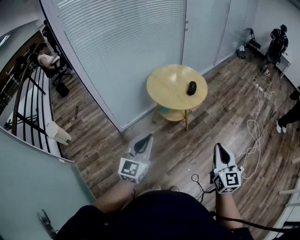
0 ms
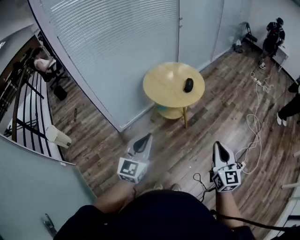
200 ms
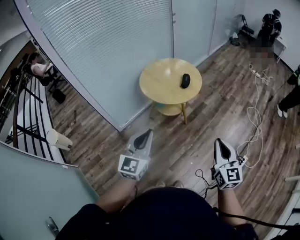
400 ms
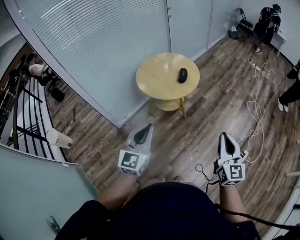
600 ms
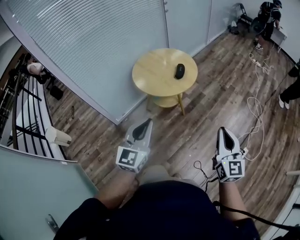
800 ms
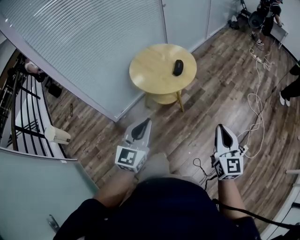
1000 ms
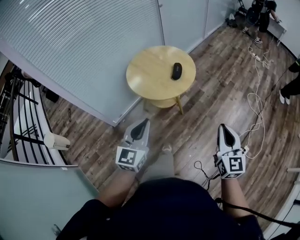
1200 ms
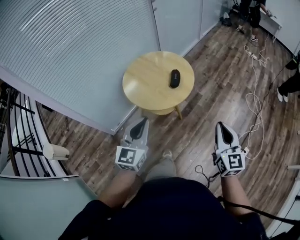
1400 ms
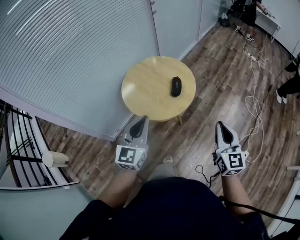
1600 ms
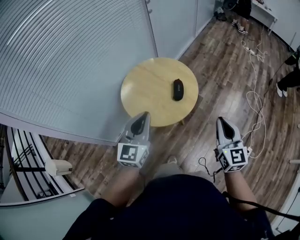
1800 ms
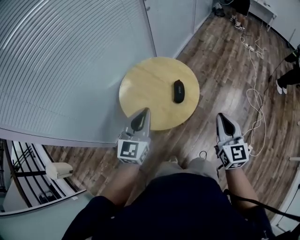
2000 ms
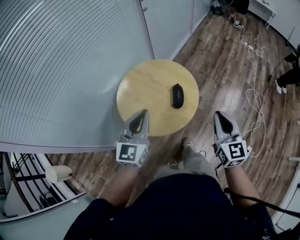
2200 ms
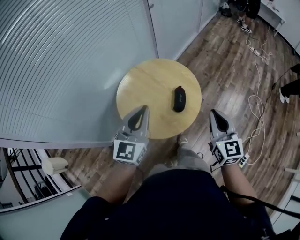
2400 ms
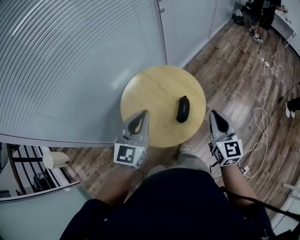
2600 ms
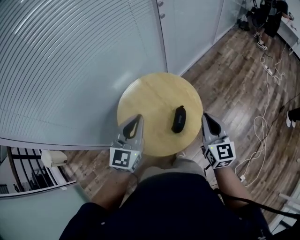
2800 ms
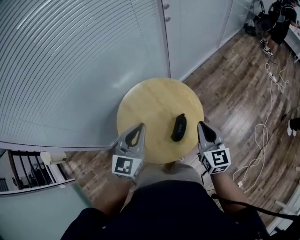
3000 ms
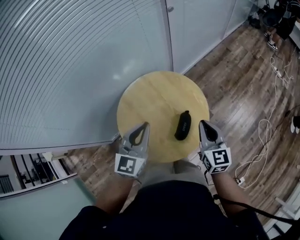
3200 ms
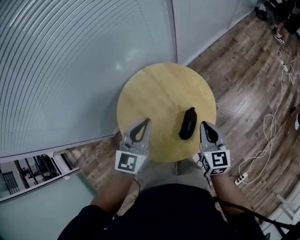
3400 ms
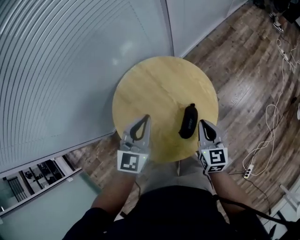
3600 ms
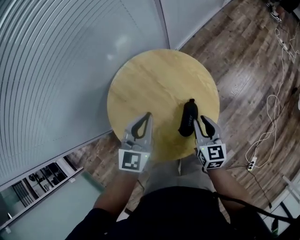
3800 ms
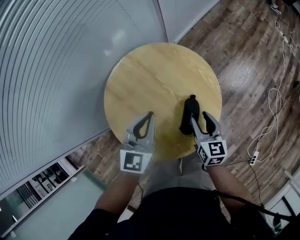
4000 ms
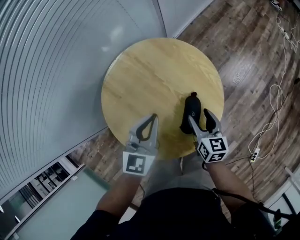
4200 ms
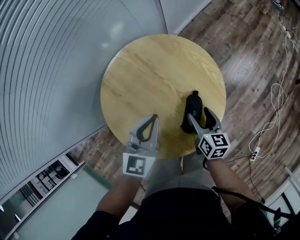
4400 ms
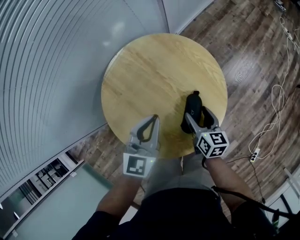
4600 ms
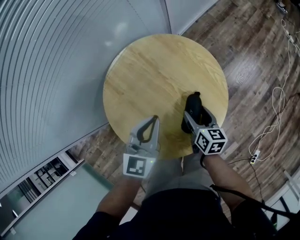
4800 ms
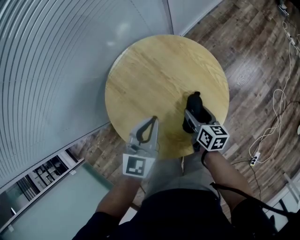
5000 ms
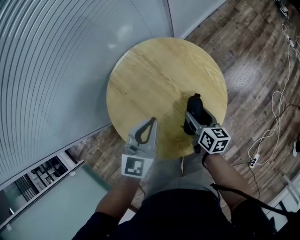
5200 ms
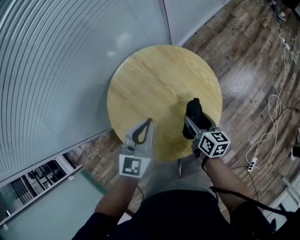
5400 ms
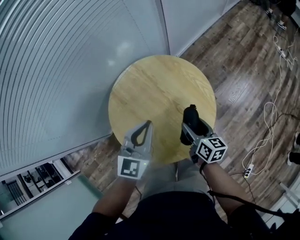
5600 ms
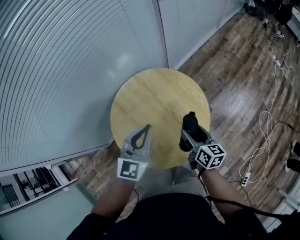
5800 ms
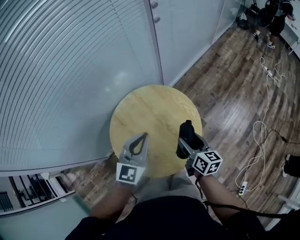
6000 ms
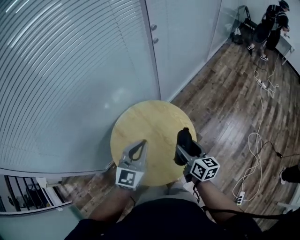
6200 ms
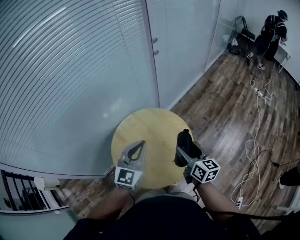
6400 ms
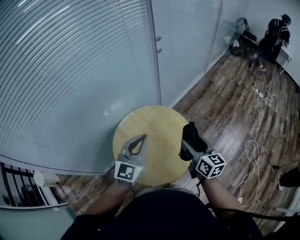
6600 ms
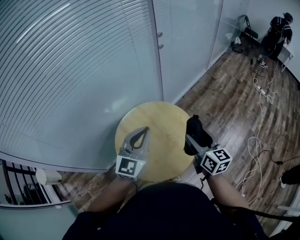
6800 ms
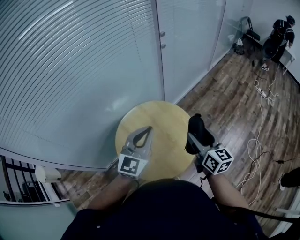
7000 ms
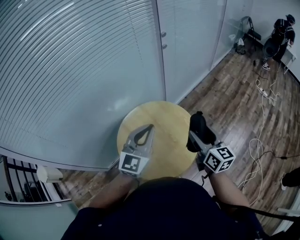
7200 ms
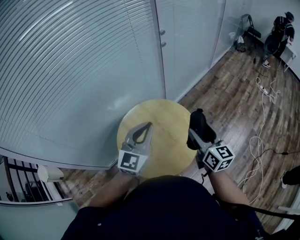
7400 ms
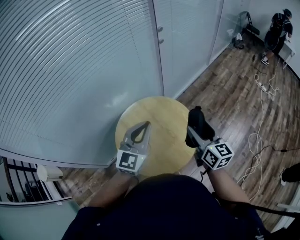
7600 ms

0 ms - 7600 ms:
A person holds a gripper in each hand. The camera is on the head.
0 ms - 1600 ms: The two grippers go about 30 cm forward.
1600 ms - 3000 ms: The two grippers go about 35 cm forward.
3000 ms - 4600 ms: Both grippers travel together downward, roughly 25 cm. The right gripper rotates about 40 degrees, and opens its fingers.
4600 ms - 6000 ms: Both grippers travel together upward, roughly 15 cm.
6000 ms - 7600 ms: The left gripper moves upward, about 10 cm, while the right gripper travels upward by approximately 20 cm, and changes its angle by some 20 degrees.

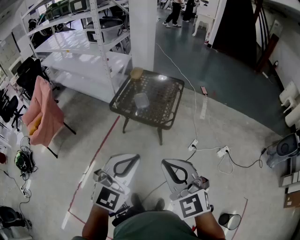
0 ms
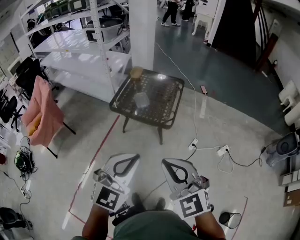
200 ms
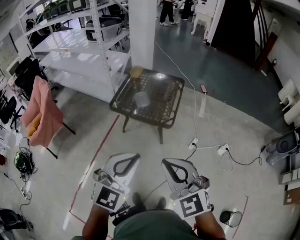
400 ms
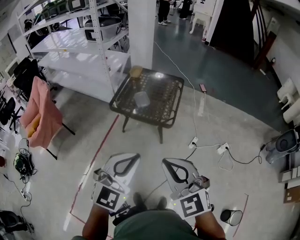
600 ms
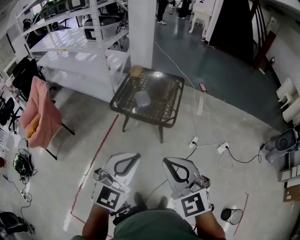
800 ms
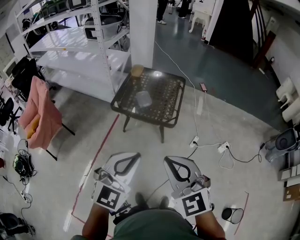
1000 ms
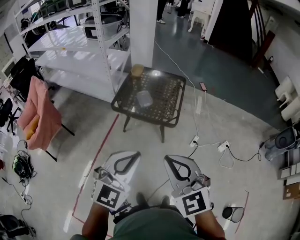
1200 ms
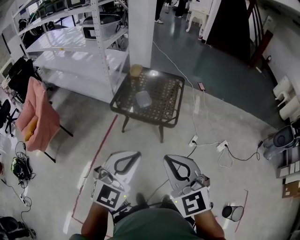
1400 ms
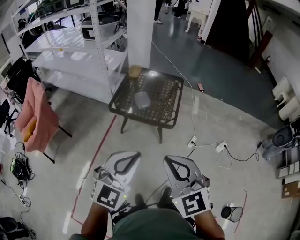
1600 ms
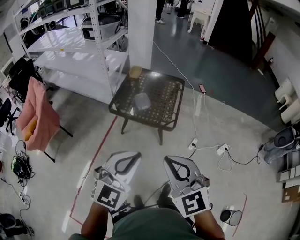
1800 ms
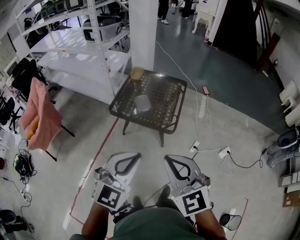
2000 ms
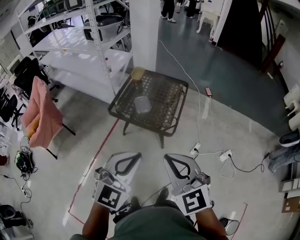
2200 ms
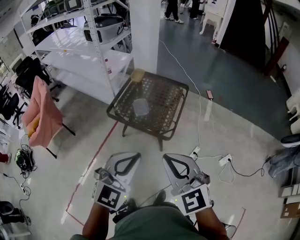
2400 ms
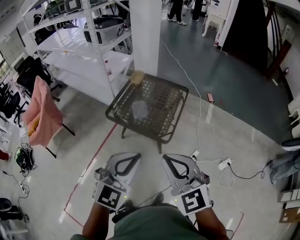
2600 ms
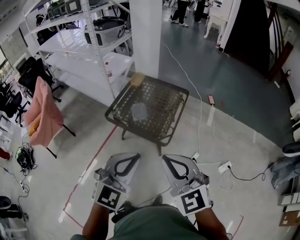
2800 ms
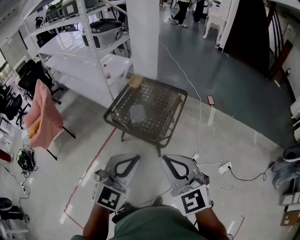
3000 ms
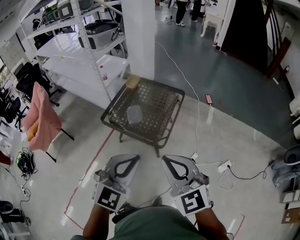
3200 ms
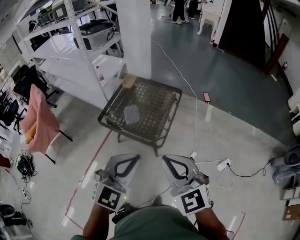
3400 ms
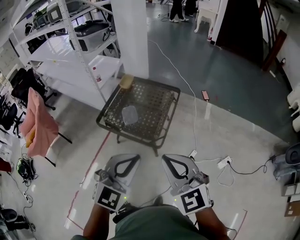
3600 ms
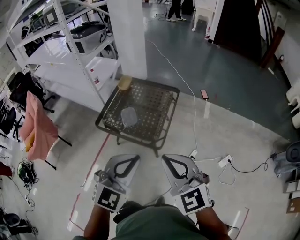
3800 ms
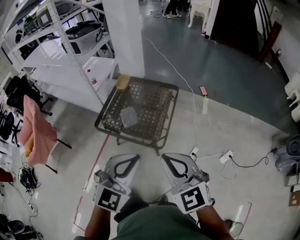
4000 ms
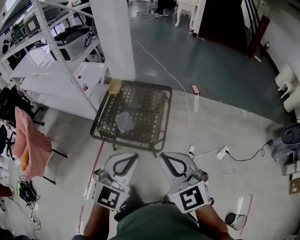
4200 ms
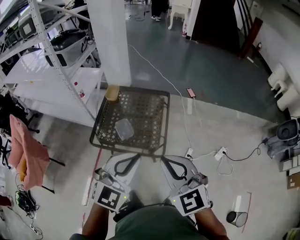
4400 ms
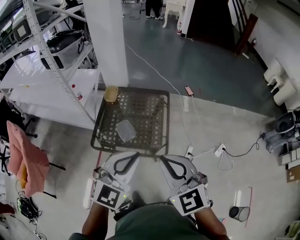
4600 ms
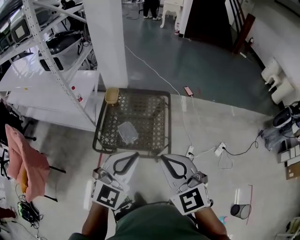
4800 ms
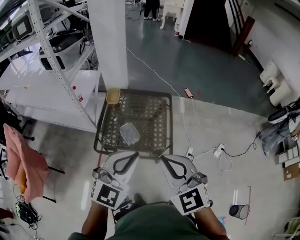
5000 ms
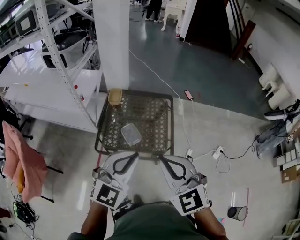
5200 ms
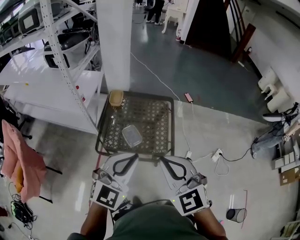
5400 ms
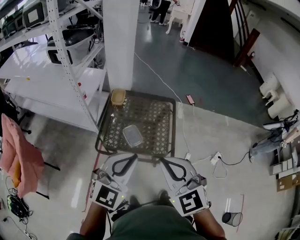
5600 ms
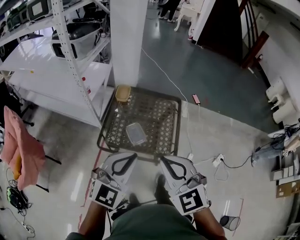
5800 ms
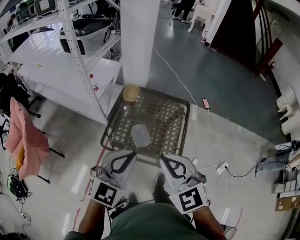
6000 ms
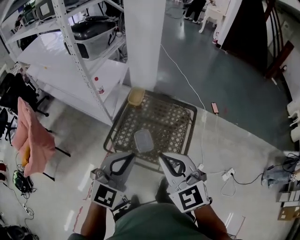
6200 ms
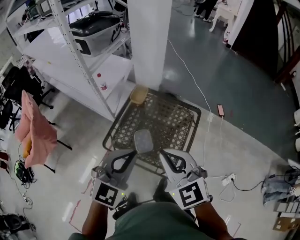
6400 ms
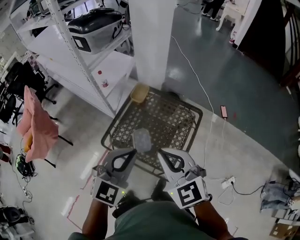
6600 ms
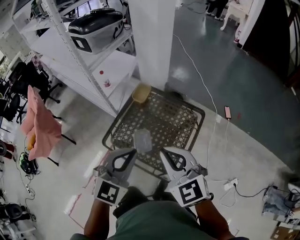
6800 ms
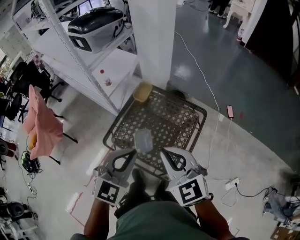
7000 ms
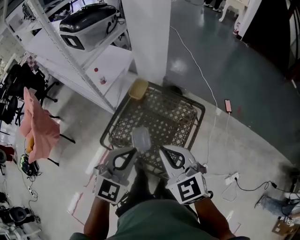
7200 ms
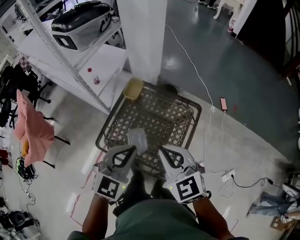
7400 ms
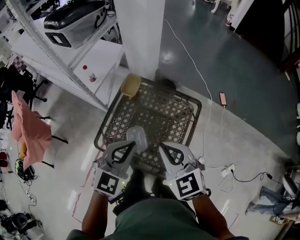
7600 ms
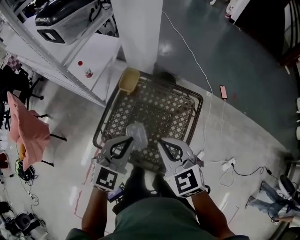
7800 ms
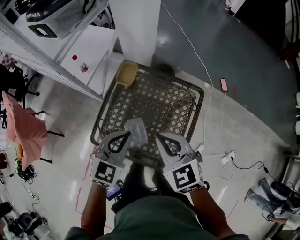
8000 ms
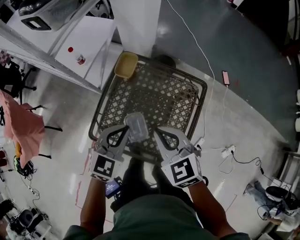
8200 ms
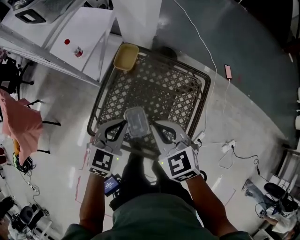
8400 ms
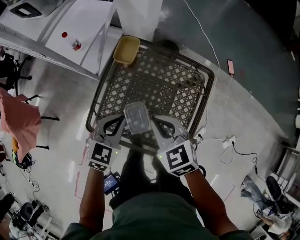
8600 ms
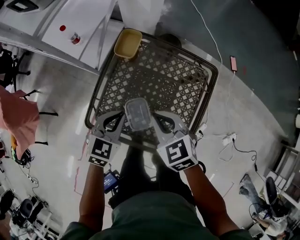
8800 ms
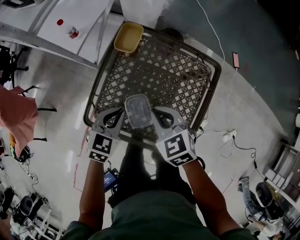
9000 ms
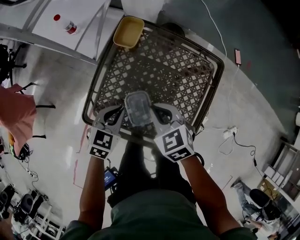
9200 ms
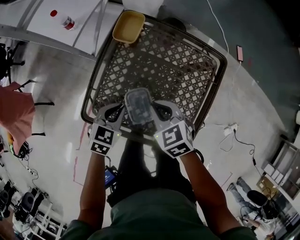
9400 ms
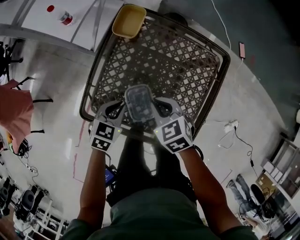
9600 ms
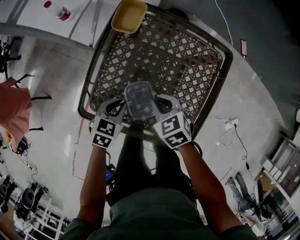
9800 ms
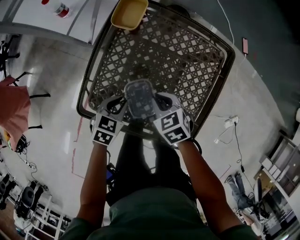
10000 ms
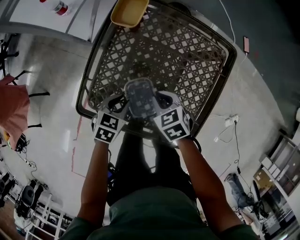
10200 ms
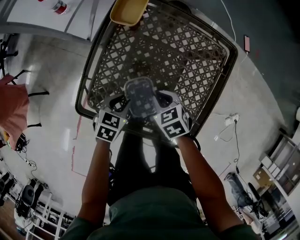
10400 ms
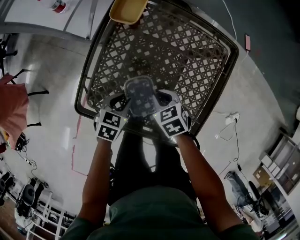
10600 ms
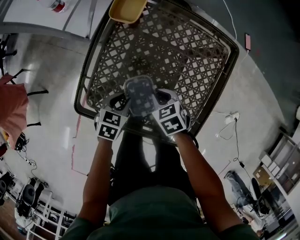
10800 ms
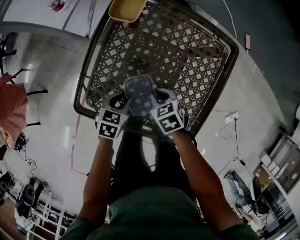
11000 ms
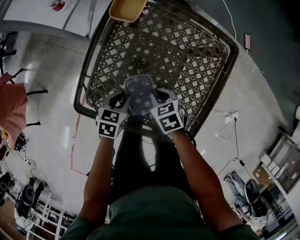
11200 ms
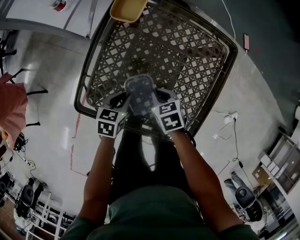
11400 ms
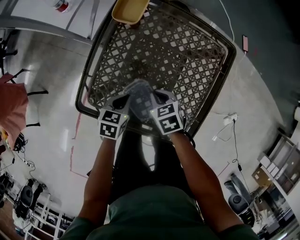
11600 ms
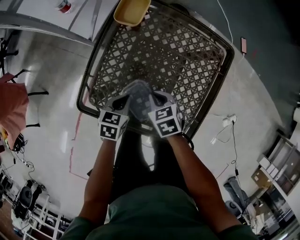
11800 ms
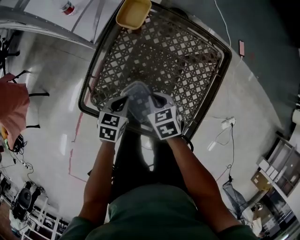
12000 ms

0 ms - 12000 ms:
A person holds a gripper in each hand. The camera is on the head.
0 ms - 1600 ms: Both grippers move to the left, about 10 cm.
1600 ms - 3000 ms: The grippers both shift to the right and forward by about 25 cm.
3000 ms - 4400 ms: The right gripper travels forward and to the left by about 15 cm. Meanwhile the left gripper is displaced forward by roughly 15 cm.
4400 ms - 6000 ms: The grippers both shift to the left and forward by about 20 cm.
6000 ms - 7600 ms: The two grippers go approximately 25 cm forward, to the right and downward.
7600 ms - 9000 ms: Both grippers travel together downward, approximately 25 cm. The left gripper turns by some 20 degrees.
9000 ms - 10400 ms: Both grippers move downward, approximately 20 cm. The right gripper swivels some 20 degrees; the left gripper opens up.
10400 ms - 12000 ms: The left gripper closes up.

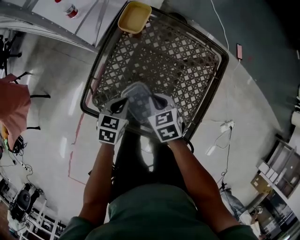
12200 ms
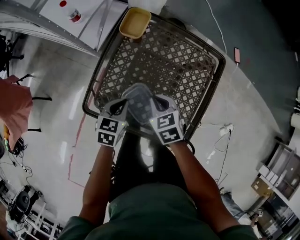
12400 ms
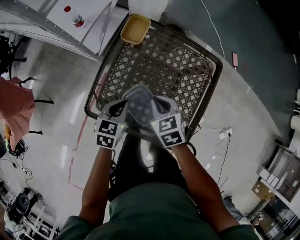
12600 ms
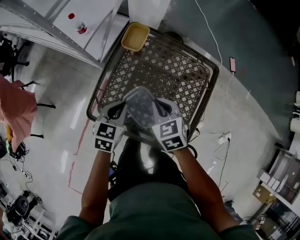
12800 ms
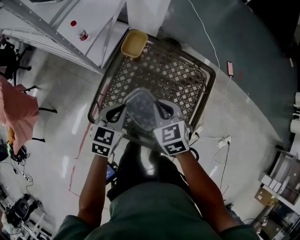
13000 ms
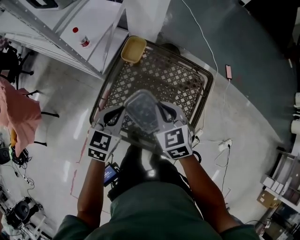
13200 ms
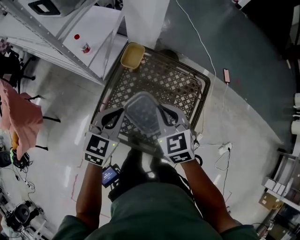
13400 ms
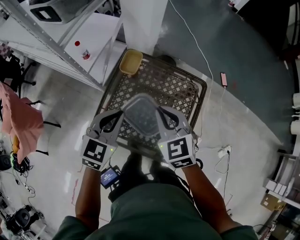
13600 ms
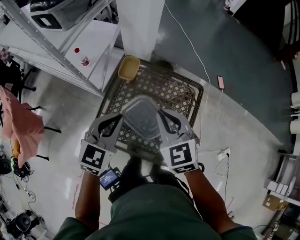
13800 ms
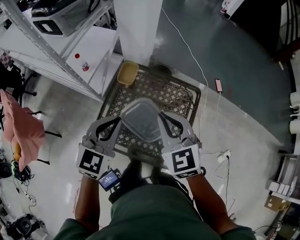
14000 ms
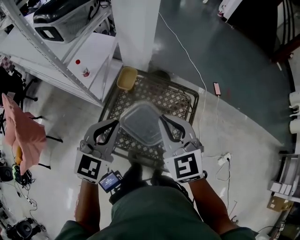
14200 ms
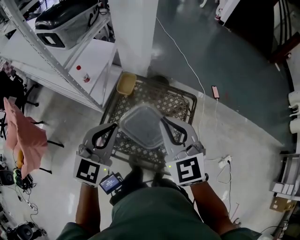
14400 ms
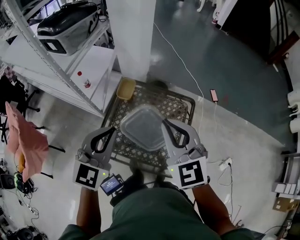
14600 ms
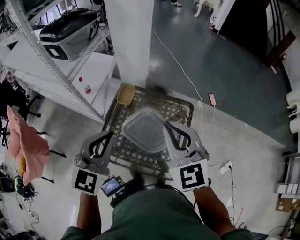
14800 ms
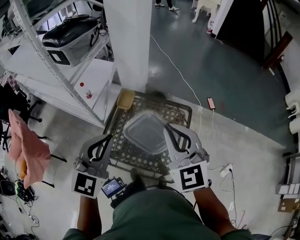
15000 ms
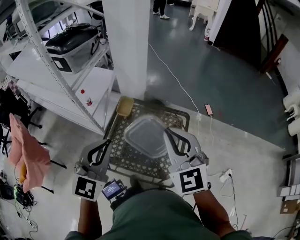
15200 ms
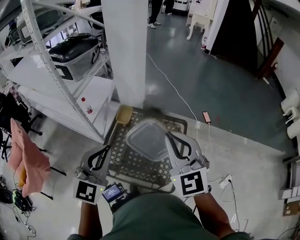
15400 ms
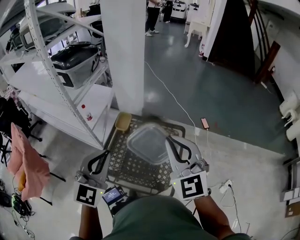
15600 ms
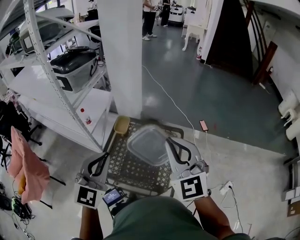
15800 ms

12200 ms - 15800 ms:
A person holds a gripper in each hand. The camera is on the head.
12200 ms - 14000 ms: The two grippers go approximately 35 cm upward. The left gripper changes its angle by approximately 40 degrees; the right gripper tips its fingers upward by some 30 degrees.
14000 ms - 15800 ms: The two grippers go roughly 25 cm upward and backward. The left gripper swivels approximately 20 degrees, while the right gripper changes its angle by some 20 degrees.
